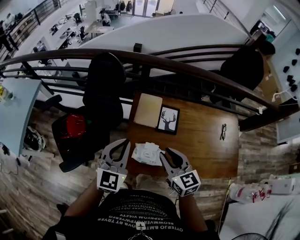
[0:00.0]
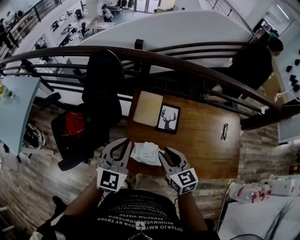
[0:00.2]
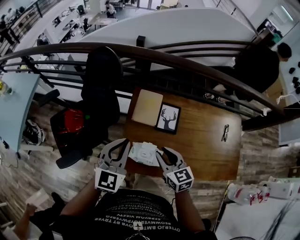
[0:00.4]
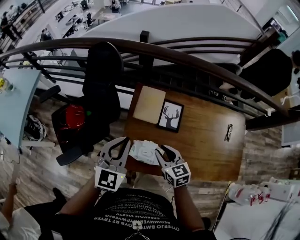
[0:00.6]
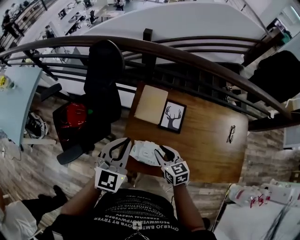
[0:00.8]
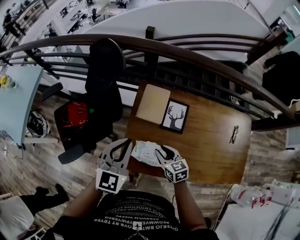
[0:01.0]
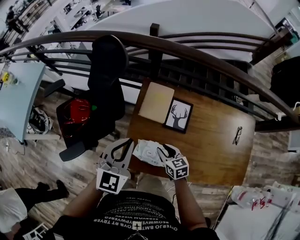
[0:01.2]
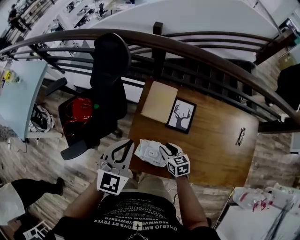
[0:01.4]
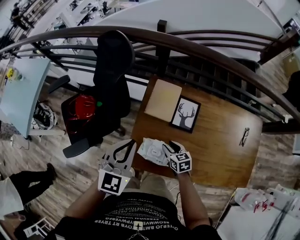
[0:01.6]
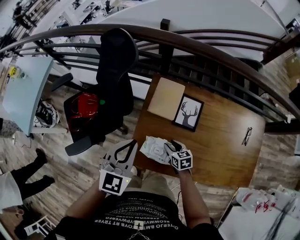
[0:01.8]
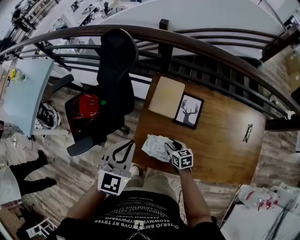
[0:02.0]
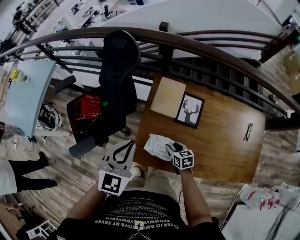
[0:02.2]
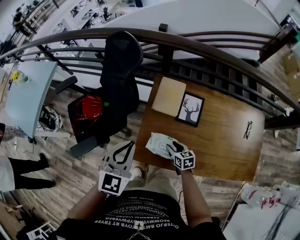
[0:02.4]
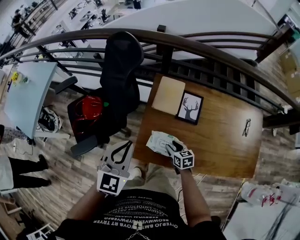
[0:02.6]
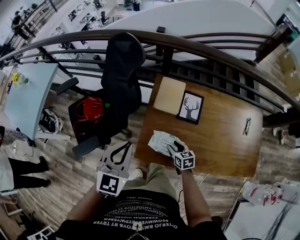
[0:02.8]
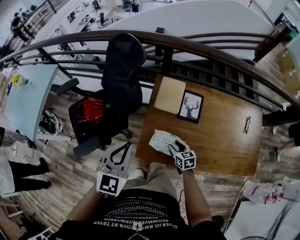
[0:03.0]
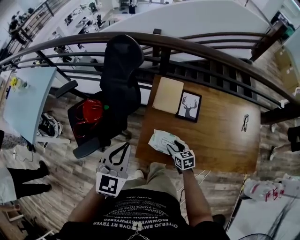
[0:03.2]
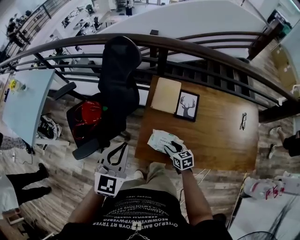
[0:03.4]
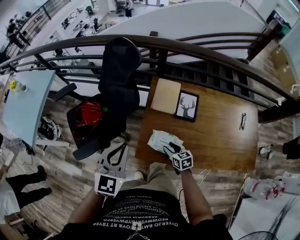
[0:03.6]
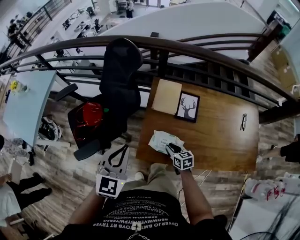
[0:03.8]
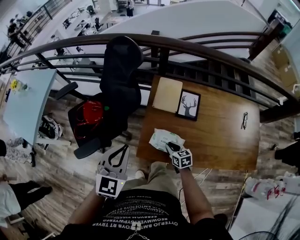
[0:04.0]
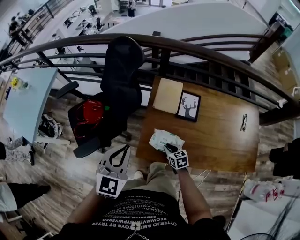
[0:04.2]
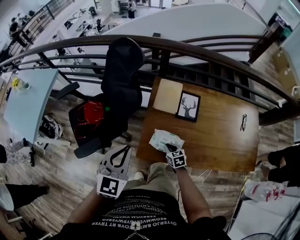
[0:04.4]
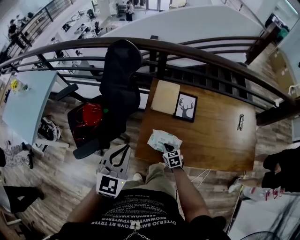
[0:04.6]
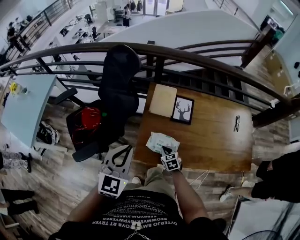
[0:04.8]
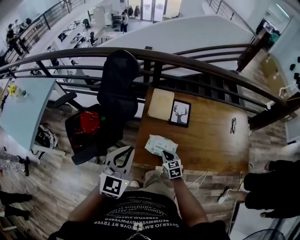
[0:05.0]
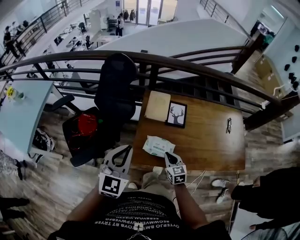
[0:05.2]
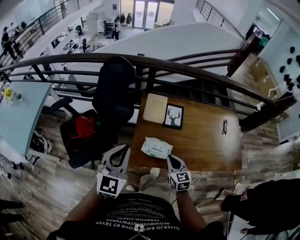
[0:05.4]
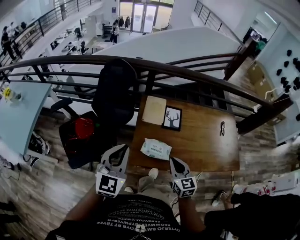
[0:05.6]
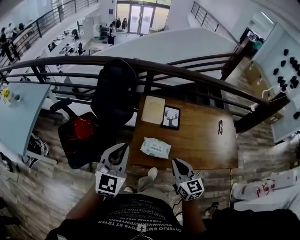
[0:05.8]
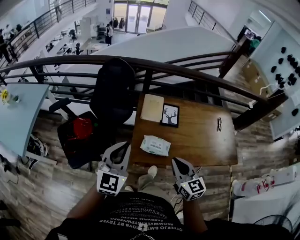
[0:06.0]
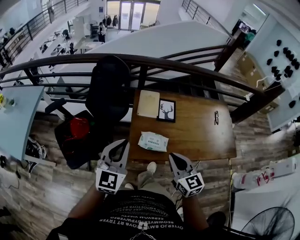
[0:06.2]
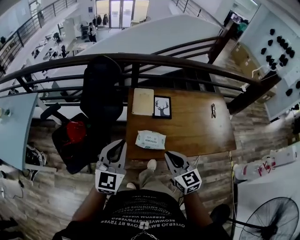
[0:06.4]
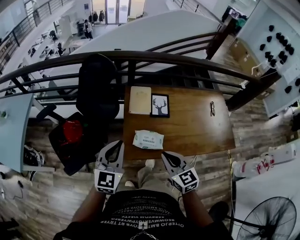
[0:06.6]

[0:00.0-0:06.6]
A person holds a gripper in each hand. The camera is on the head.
0:00.0 to 0:01.6: The right gripper goes roughly 30 cm downward, and changes its angle by approximately 30 degrees, while the left gripper is displaced downward by approximately 5 cm.
0:01.6 to 0:03.2: The left gripper travels to the left and backward by some 10 cm, while the right gripper goes about 5 cm backward.
0:03.2 to 0:05.0: The right gripper closes; the left gripper ends up approximately 5 cm from where it was.
0:05.0 to 0:06.6: The right gripper goes roughly 25 cm upward.

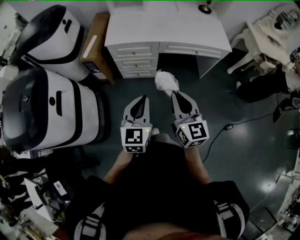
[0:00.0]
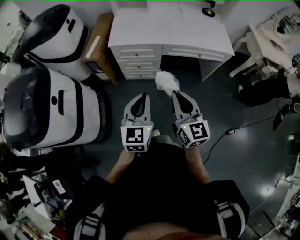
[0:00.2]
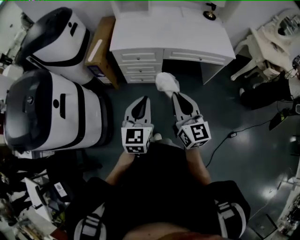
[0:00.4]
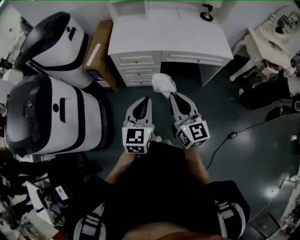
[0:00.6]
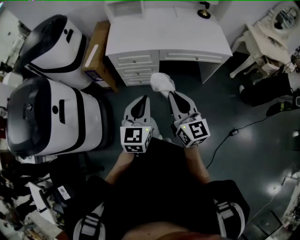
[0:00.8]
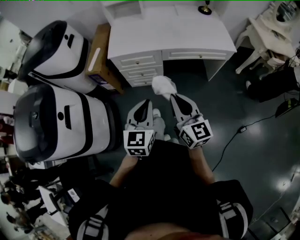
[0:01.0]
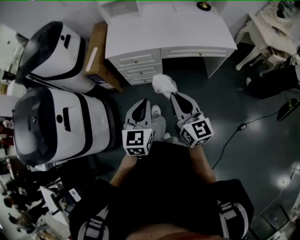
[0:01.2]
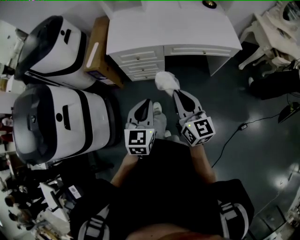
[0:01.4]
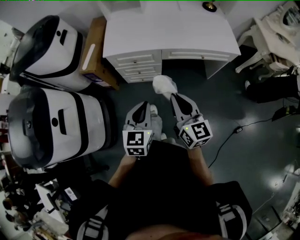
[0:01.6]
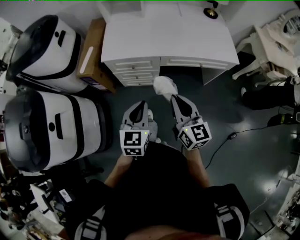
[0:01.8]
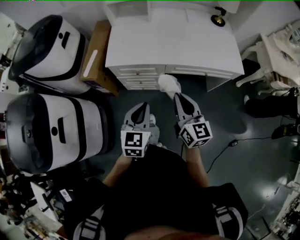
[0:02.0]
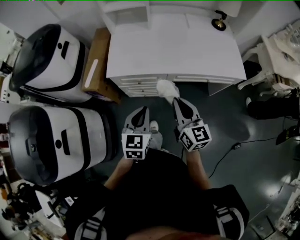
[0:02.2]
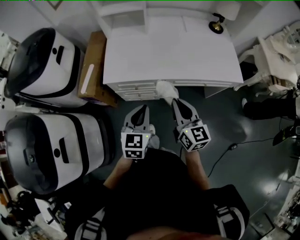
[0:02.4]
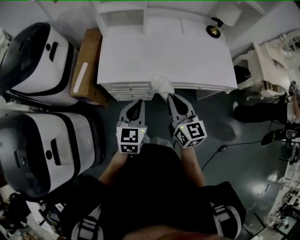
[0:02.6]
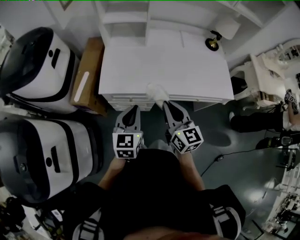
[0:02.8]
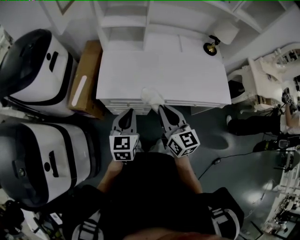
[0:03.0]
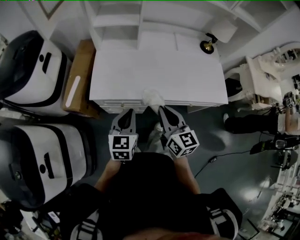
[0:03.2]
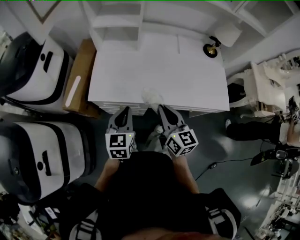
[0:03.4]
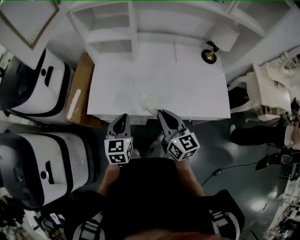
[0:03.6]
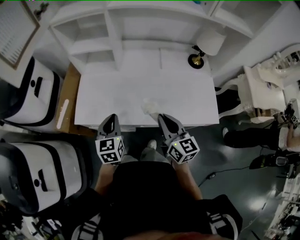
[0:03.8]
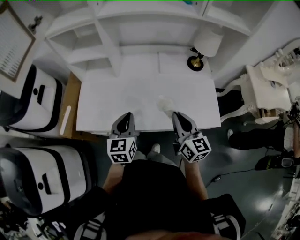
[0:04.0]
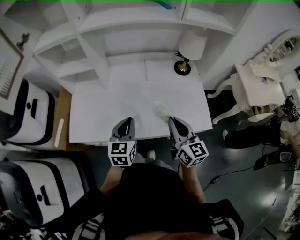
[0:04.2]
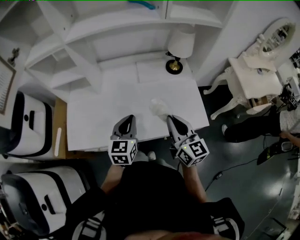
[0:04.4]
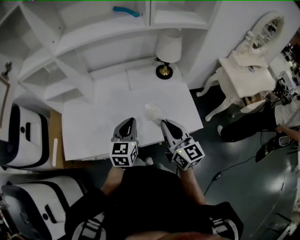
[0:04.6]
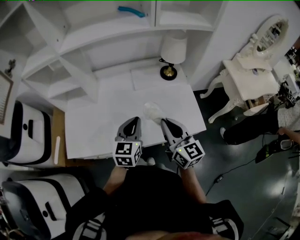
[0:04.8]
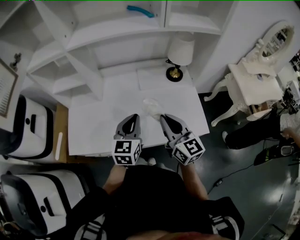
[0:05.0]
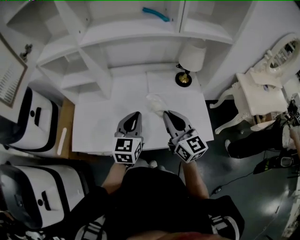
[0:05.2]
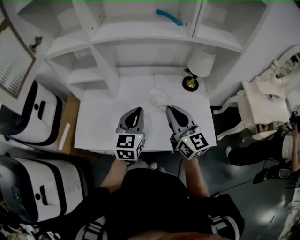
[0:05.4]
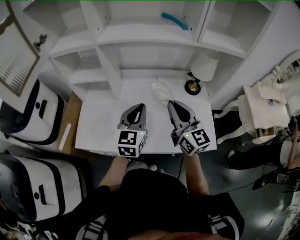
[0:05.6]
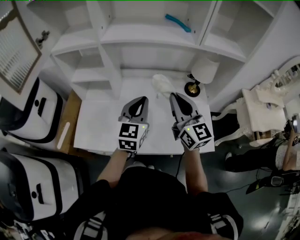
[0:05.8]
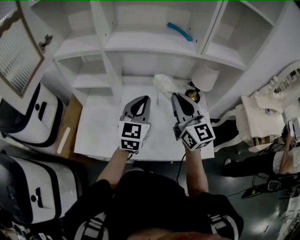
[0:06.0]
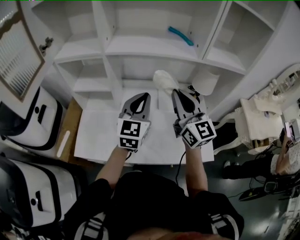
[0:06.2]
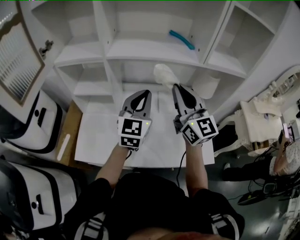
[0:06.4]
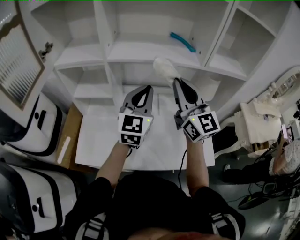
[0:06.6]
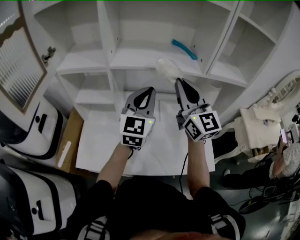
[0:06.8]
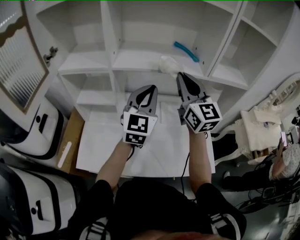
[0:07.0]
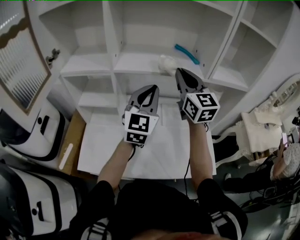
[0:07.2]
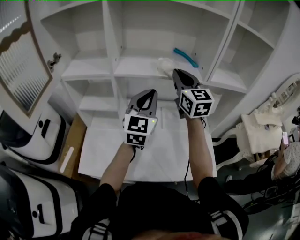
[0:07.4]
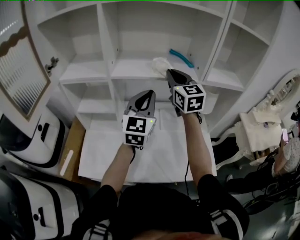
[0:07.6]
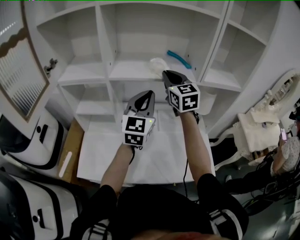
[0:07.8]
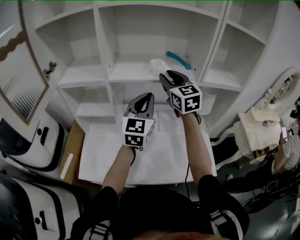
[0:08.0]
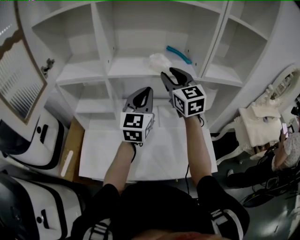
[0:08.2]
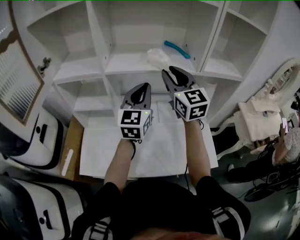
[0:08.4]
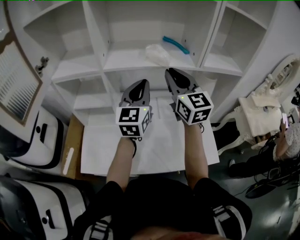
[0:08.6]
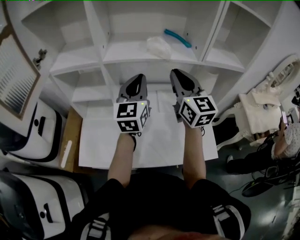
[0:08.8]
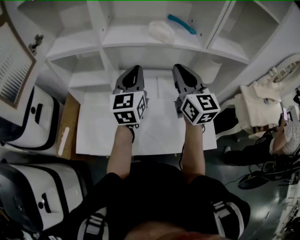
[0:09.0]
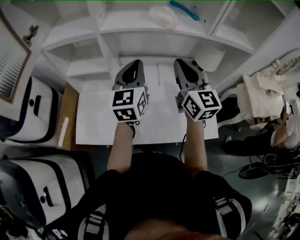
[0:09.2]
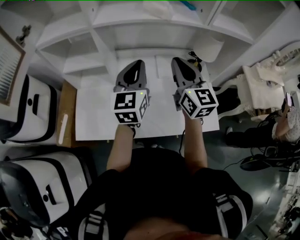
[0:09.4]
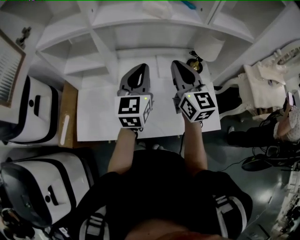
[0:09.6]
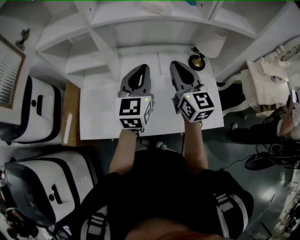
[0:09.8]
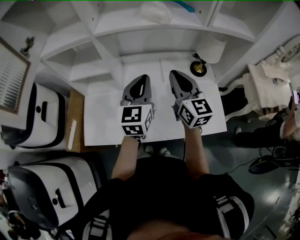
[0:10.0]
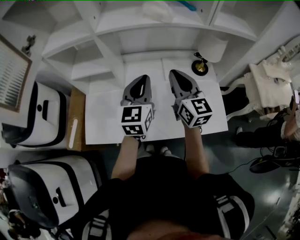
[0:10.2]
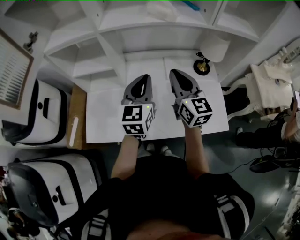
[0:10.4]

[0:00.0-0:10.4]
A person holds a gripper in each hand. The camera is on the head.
0:00.0 to 0:01.4: Both grippers travel together forward, approximately 10 cm.
0:01.4 to 0:03.0: Both grippers move forward, roughly 30 cm.
0:03.0 to 0:04.4: The right gripper travels to the right by some 35 cm; the left gripper shifts about 35 cm to the right and forward.
0:04.4 to 0:06.0: The right gripper heads forward, upward and to the left, covering some 20 cm, and turns by about 20 degrees. Meanwhile the left gripper heads upward and forward, covering approximately 20 cm.
0:06.0 to 0:07.4: The right gripper heads forward and upward, covering approximately 20 cm. Meanwhile the left gripper heads upward and forward, covering some 15 cm.
0:07.4 to 0:09.0: The left gripper changes place by roughly 5 cm, while the right gripper heads backward and downward, covering some 10 cm, and opens and closes again.
0:09.0 to 0:10.4: The left gripper travels downward and backward by about 10 cm; the right gripper heads downward, covering roughly 10 cm.

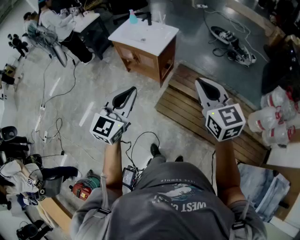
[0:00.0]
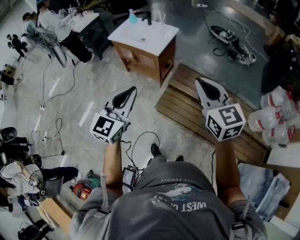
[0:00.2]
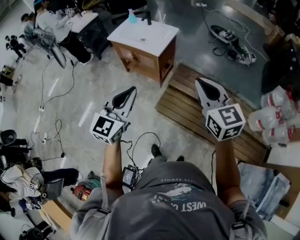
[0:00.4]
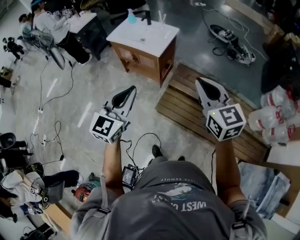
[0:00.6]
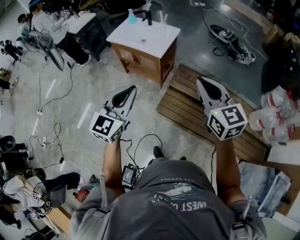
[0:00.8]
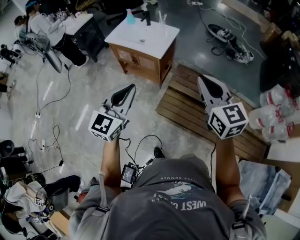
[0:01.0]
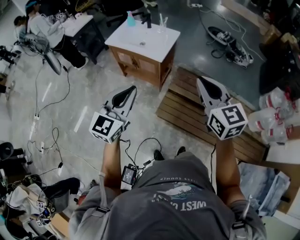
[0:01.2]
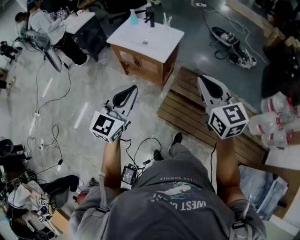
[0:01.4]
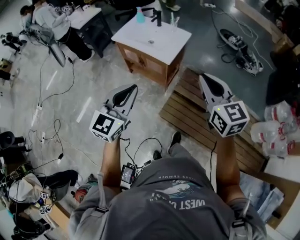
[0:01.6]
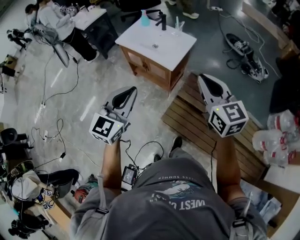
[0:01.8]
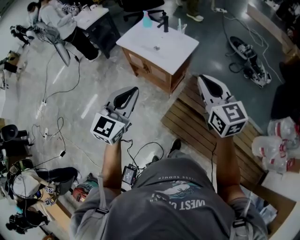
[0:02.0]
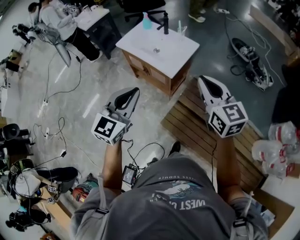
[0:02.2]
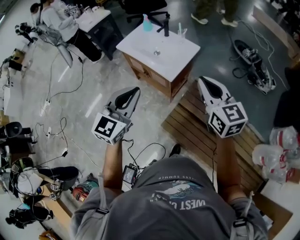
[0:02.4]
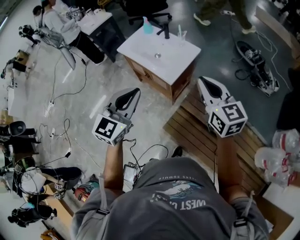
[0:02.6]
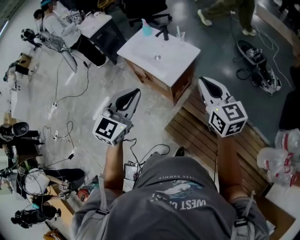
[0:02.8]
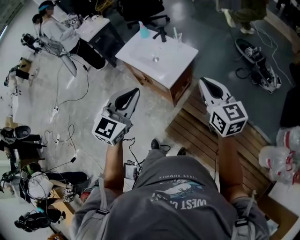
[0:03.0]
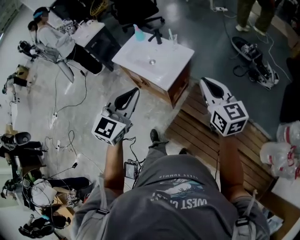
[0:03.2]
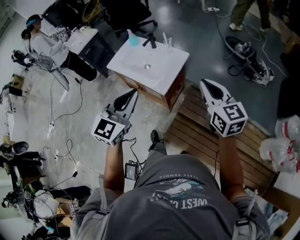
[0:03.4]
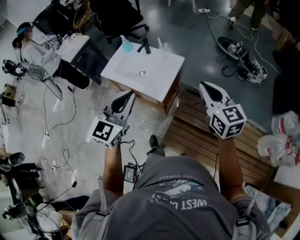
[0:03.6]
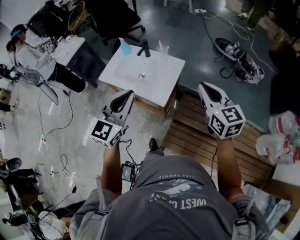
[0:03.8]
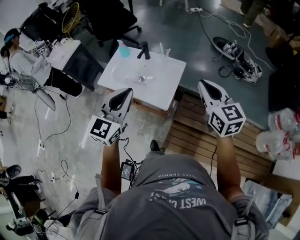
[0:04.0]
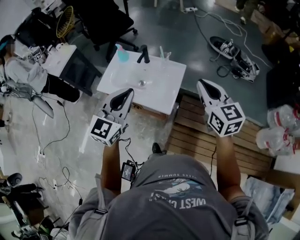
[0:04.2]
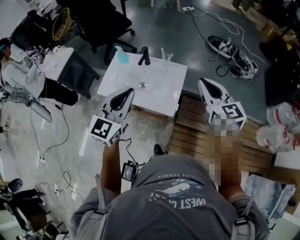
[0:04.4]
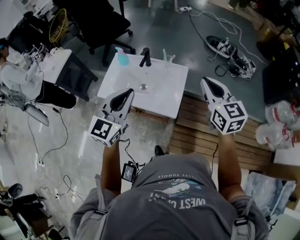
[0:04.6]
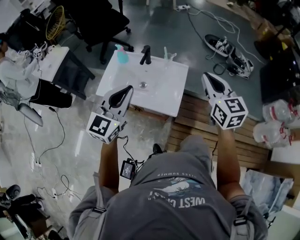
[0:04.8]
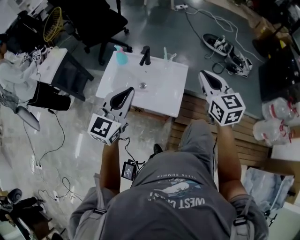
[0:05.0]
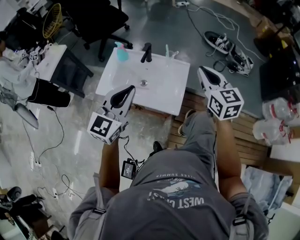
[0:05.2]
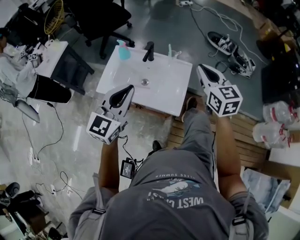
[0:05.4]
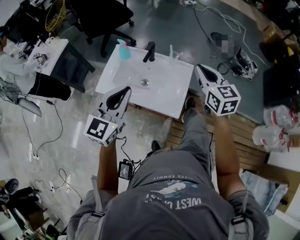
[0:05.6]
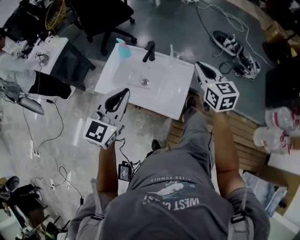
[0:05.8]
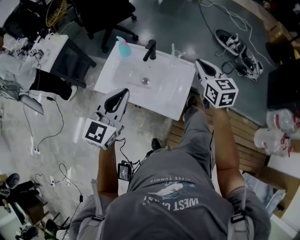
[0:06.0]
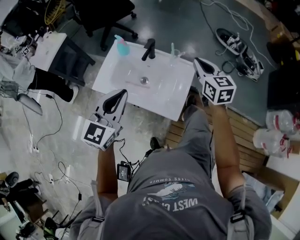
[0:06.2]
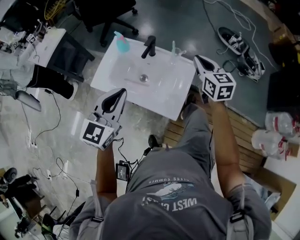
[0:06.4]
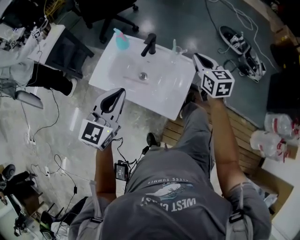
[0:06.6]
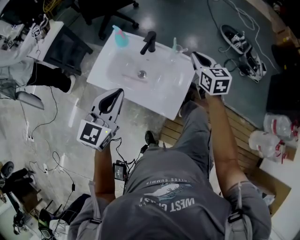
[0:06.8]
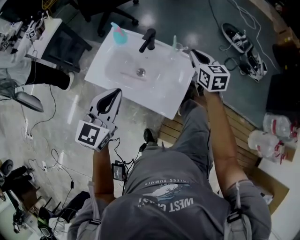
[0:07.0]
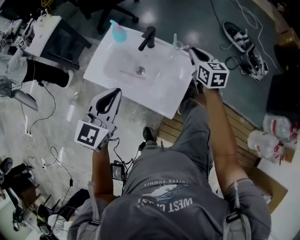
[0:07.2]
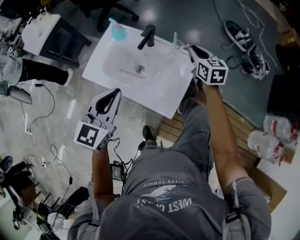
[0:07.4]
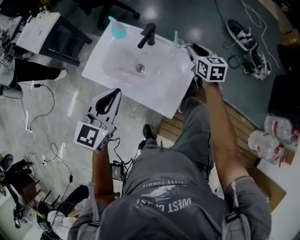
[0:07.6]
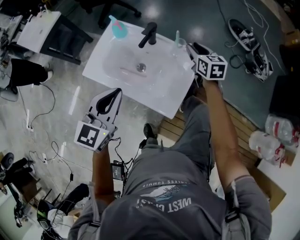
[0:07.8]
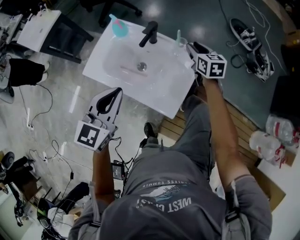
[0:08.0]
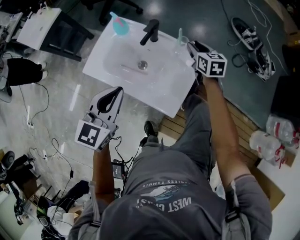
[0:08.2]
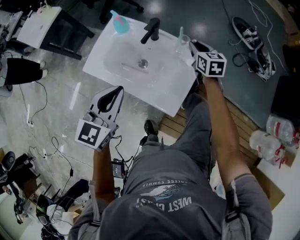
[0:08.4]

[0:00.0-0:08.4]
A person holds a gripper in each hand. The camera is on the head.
0:00.0 to 0:01.4: Both grippers move forward and to the left, some 15 cm.
0:01.4 to 0:02.8: The right gripper goes roughly 25 cm forward; the left gripper moves forward and to the right, approximately 20 cm.
0:02.8 to 0:04.2: Both grippers move forward and to the left, roughly 20 cm. The right gripper turns by about 20 degrees.
0:04.2 to 0:05.6: The right gripper shifts approximately 15 cm forward and to the left; the left gripper moves to the left and forward, approximately 10 cm.
0:05.6 to 0:07.0: The left gripper moves downward, some 5 cm. The right gripper shifts some 20 cm forward and downward.
0:07.0 to 0:08.4: The right gripper travels downward and forward by some 10 cm.
